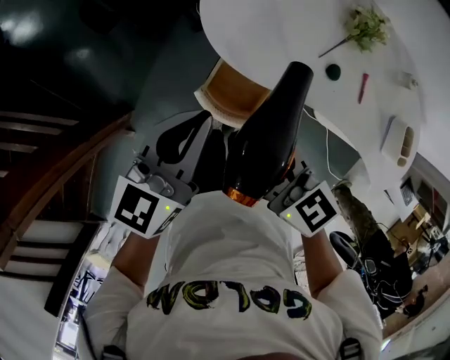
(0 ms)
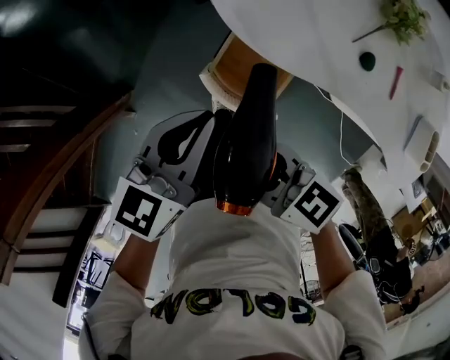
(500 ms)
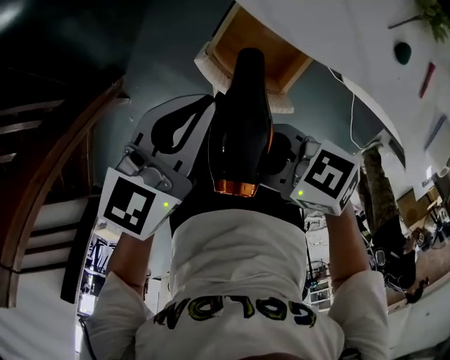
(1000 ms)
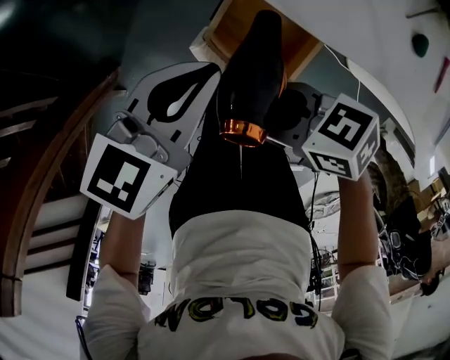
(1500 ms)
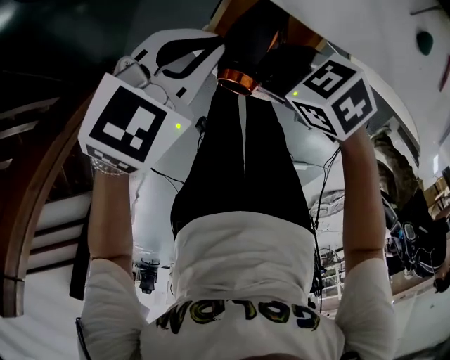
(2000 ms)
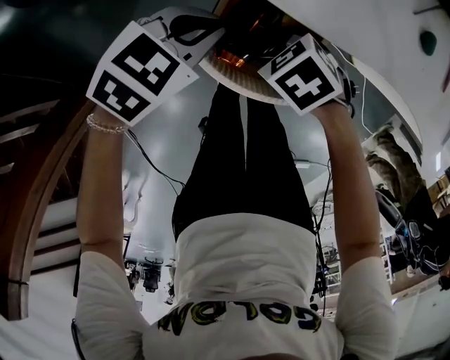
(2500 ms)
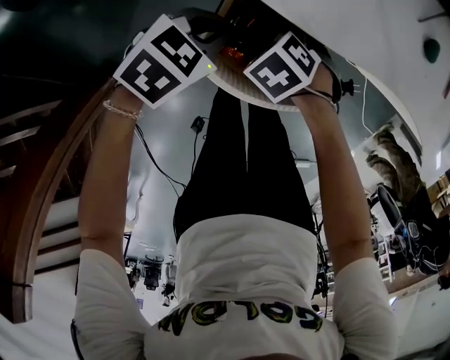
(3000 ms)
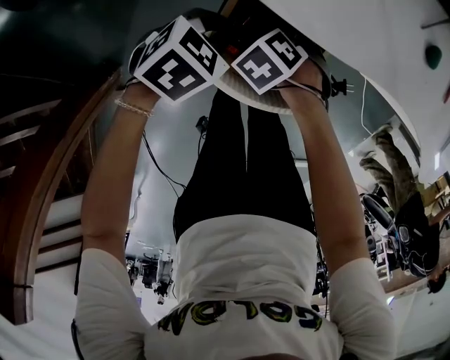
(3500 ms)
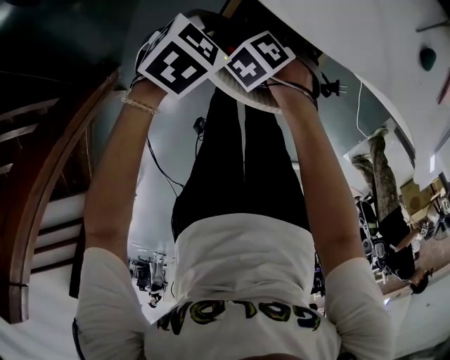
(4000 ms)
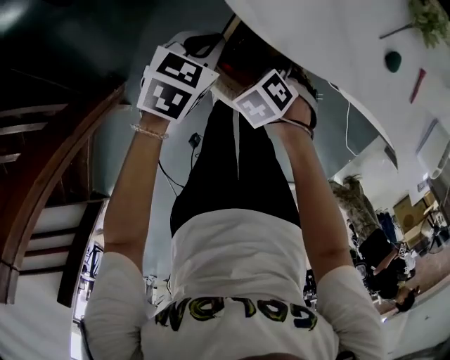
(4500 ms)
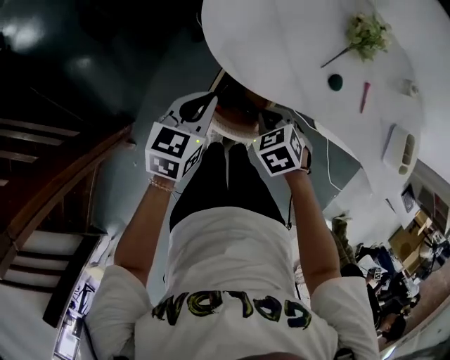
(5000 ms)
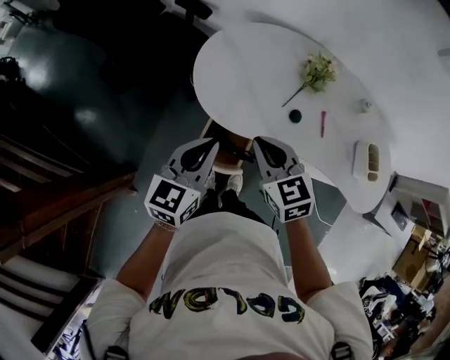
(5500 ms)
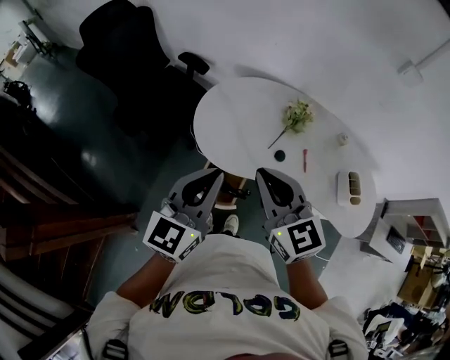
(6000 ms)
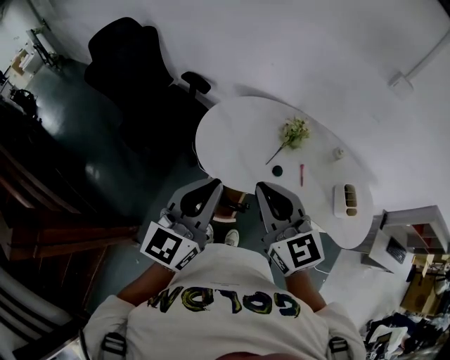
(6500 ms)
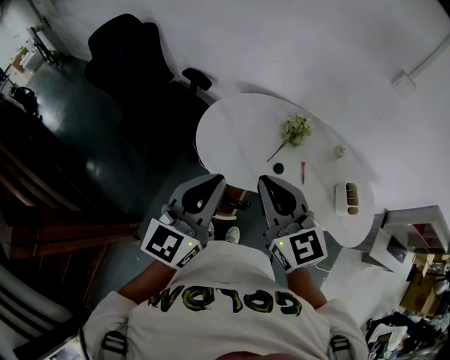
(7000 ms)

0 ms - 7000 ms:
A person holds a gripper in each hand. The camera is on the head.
0 ms - 2000 ms: Both grippers move downward, approximately 30 cm. The right gripper turns by about 40 degrees; the left gripper changes its angle by approximately 40 degrees.
2000 ms - 3500 ms: Both grippers travel together downward, some 15 cm. The right gripper angles its fingers downward, by some 40 degrees.
3500 ms - 5000 ms: Both grippers move upward, some 25 cm. The left gripper swivels some 40 degrees. The right gripper turns by about 30 degrees, and closes.
5000 ms - 7000 ms: The two grippers go roughly 40 cm upward. The left gripper angles its fingers upward, by about 40 degrees. The right gripper points its fingers about 60 degrees further upward.

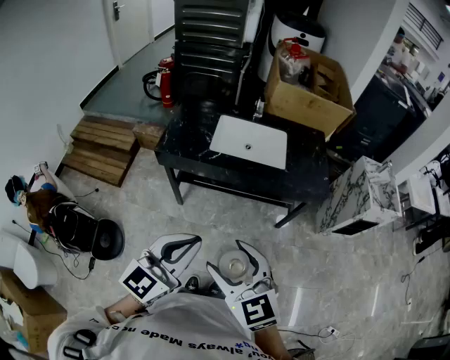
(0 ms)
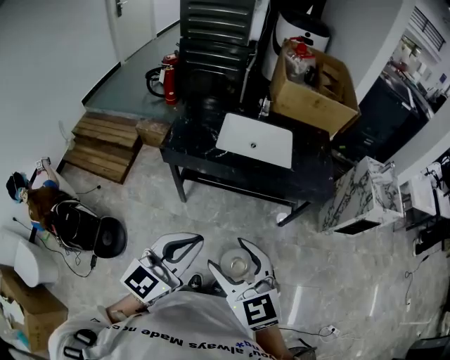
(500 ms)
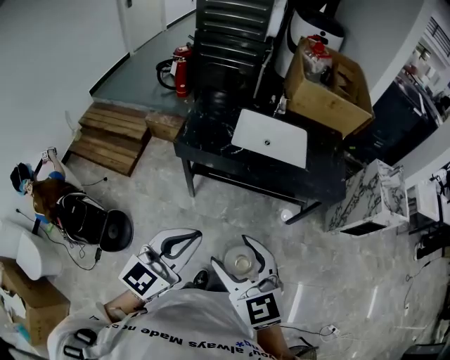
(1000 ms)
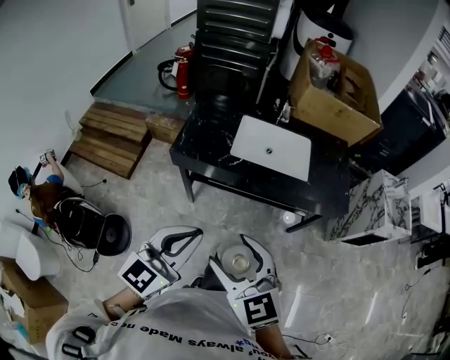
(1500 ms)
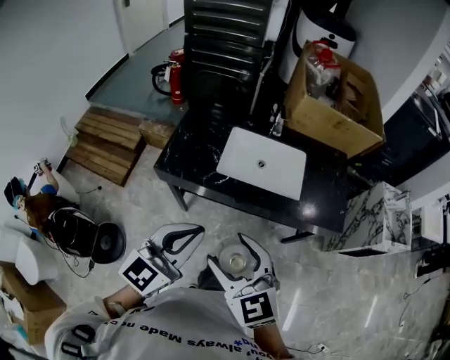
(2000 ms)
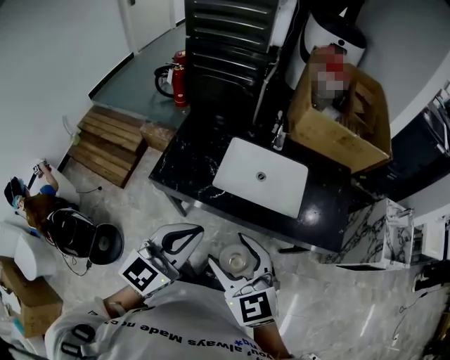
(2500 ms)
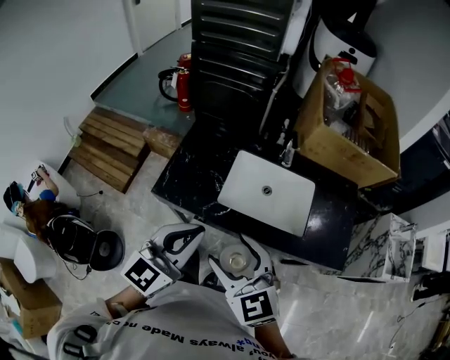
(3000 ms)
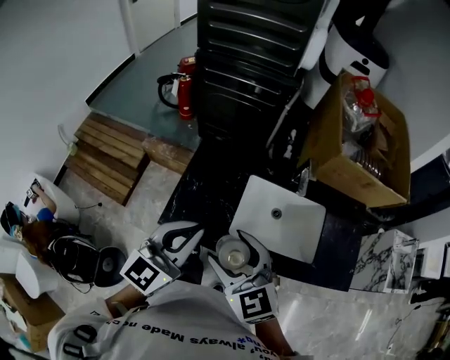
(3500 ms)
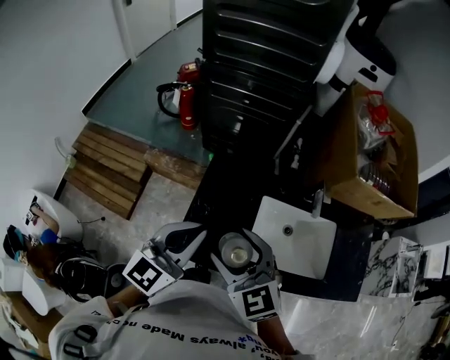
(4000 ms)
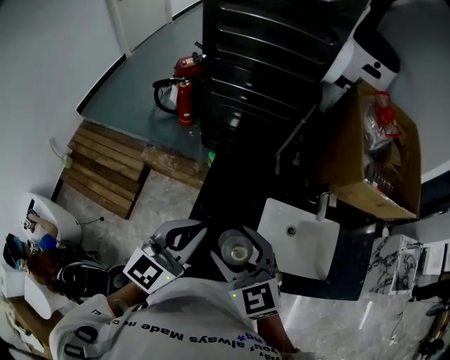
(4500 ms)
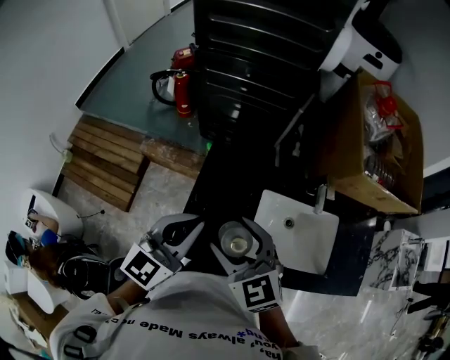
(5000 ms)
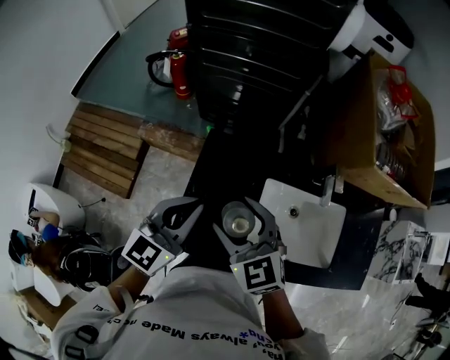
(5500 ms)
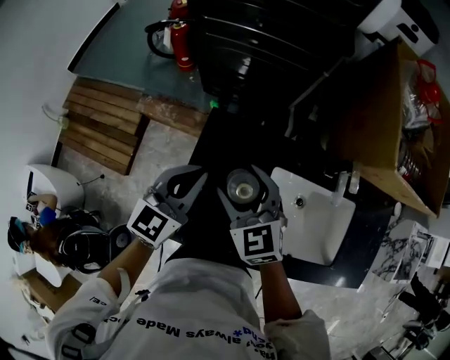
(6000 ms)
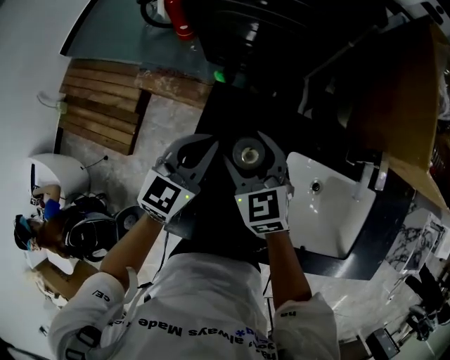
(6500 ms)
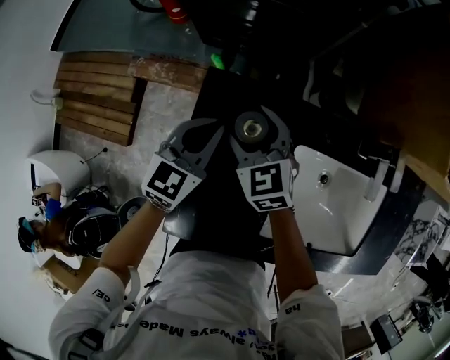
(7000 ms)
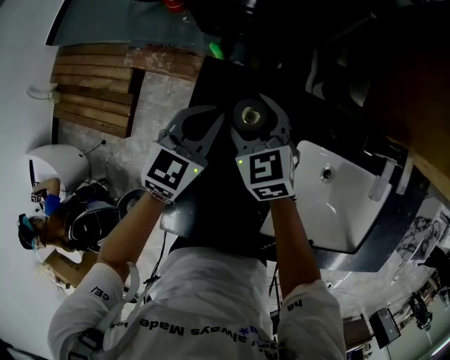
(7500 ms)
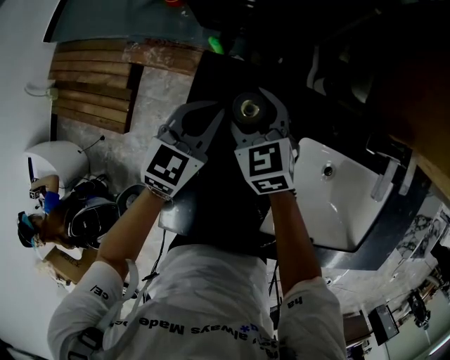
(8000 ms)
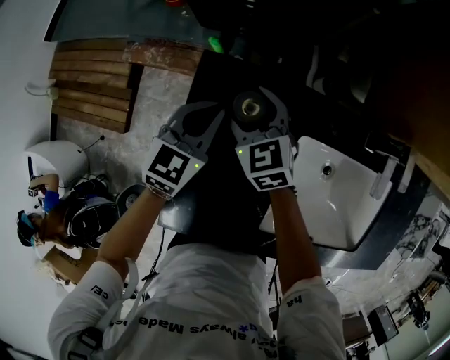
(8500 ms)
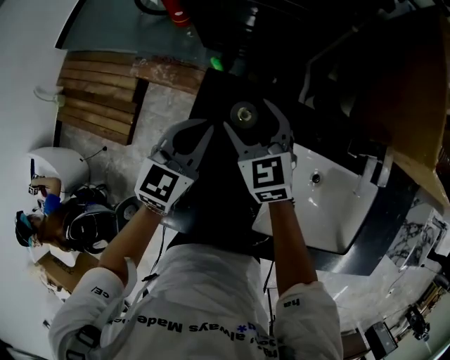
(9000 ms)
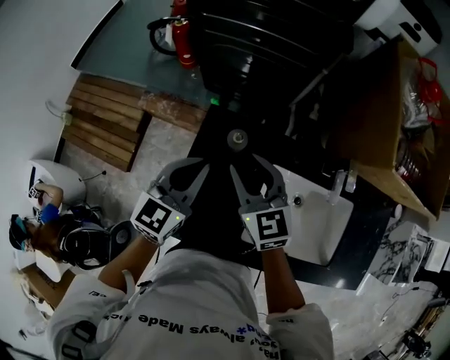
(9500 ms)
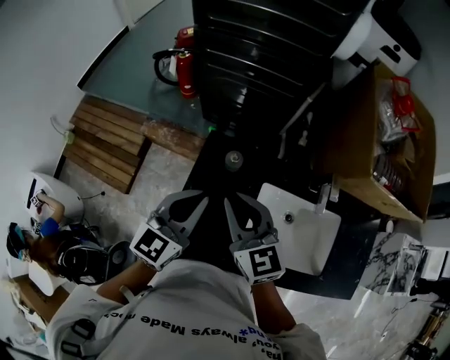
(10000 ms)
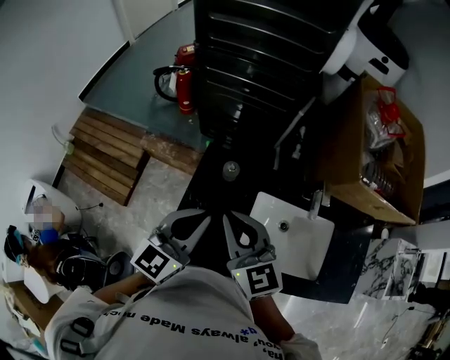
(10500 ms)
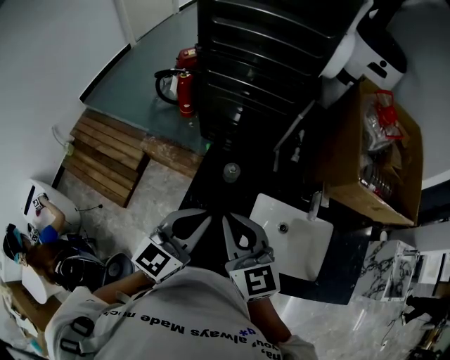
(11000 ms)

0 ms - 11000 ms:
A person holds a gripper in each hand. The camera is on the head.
0 ms - 2000 ms: Both grippers travel together forward, roughly 20 cm.
2000 ms - 3500 ms: Both grippers move forward, roughly 30 cm.
3500 ms - 5500 ms: Both grippers travel together forward, roughly 20 cm.
5500 ms - 7500 ms: Both grippers travel together downward and forward, about 30 cm.
7500 ms - 9000 ms: Both grippers move upward, about 5 cm.
9000 ms - 11000 ms: The grippers both shift upward and backward by approximately 30 cm. The right gripper closes.

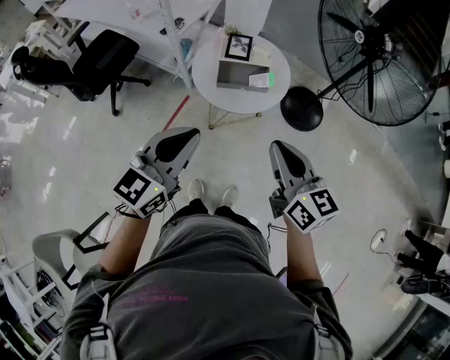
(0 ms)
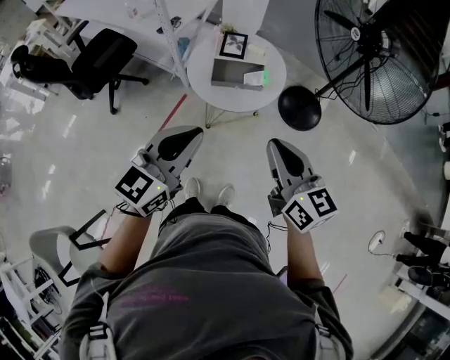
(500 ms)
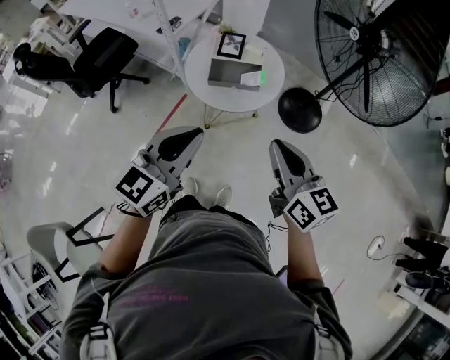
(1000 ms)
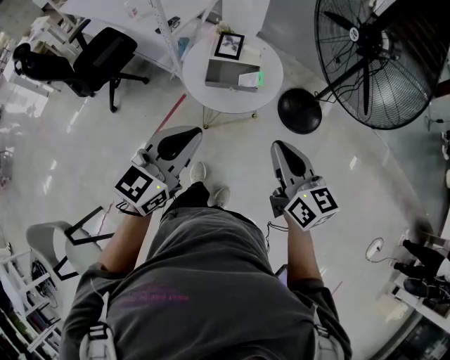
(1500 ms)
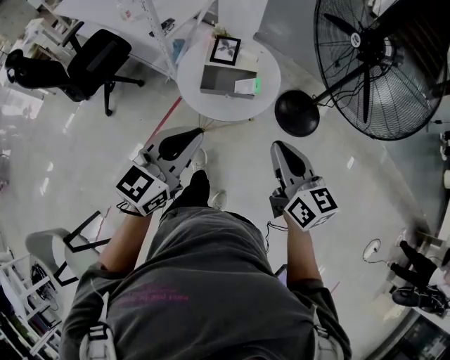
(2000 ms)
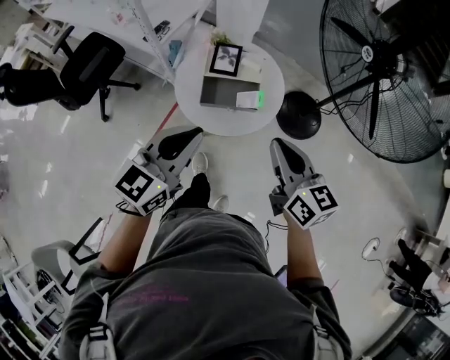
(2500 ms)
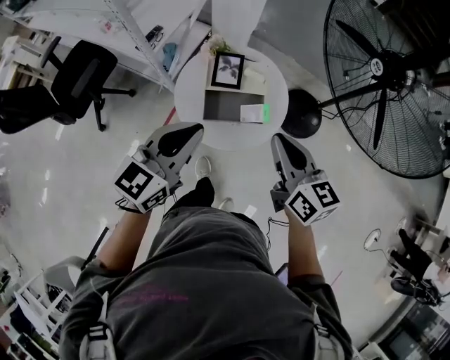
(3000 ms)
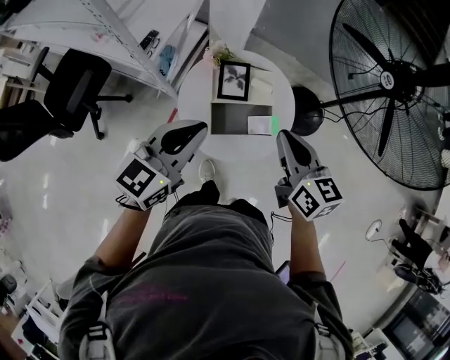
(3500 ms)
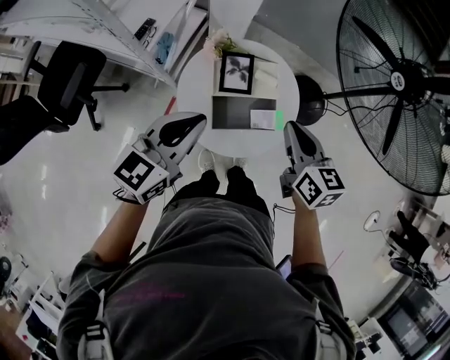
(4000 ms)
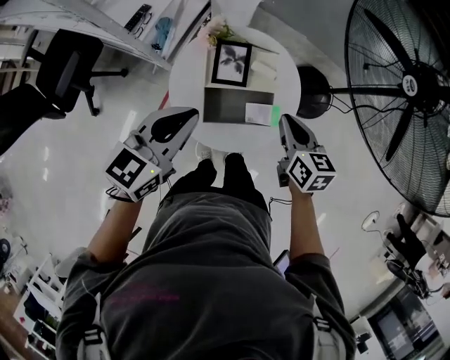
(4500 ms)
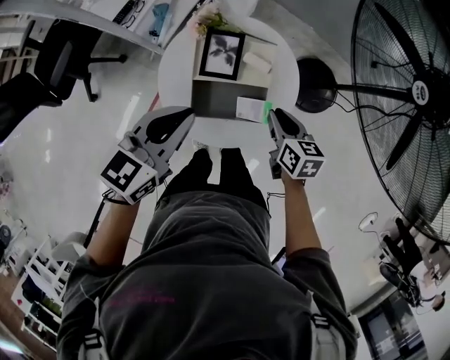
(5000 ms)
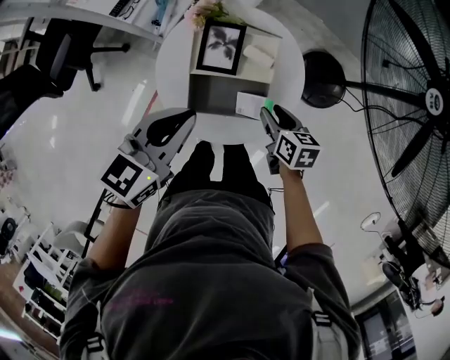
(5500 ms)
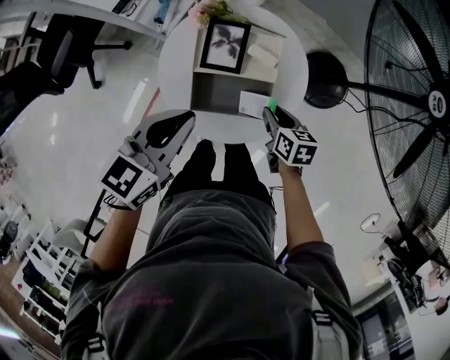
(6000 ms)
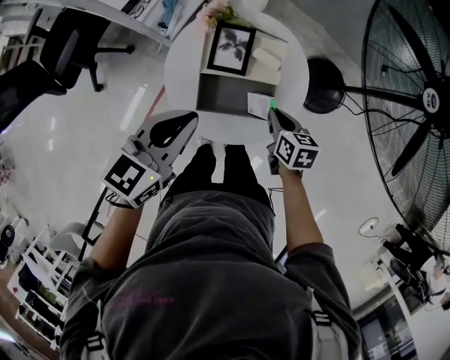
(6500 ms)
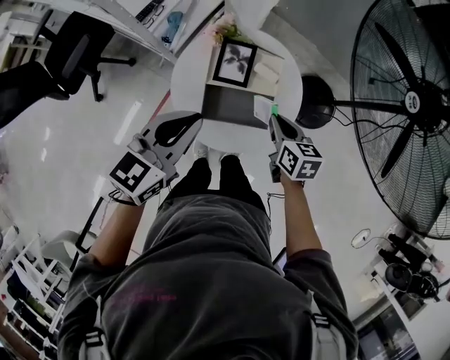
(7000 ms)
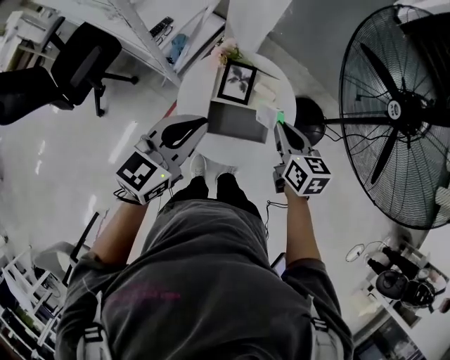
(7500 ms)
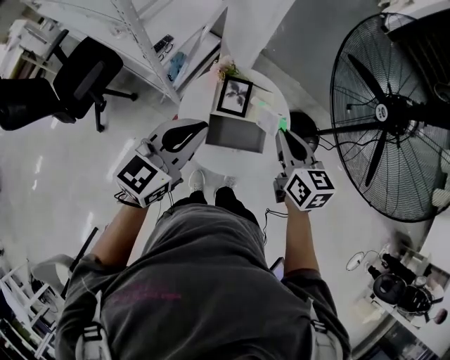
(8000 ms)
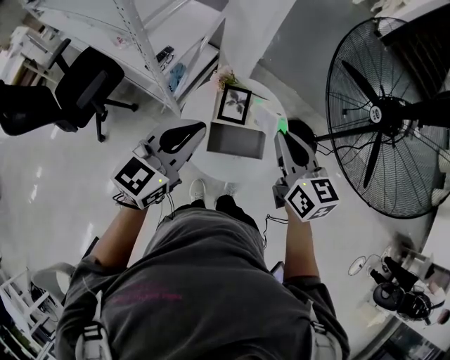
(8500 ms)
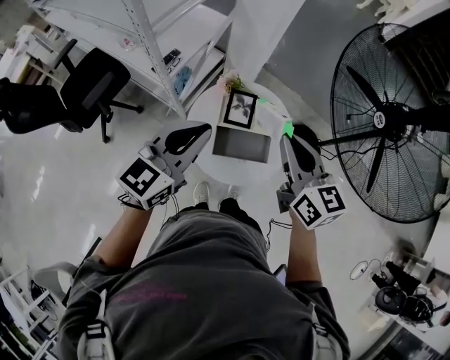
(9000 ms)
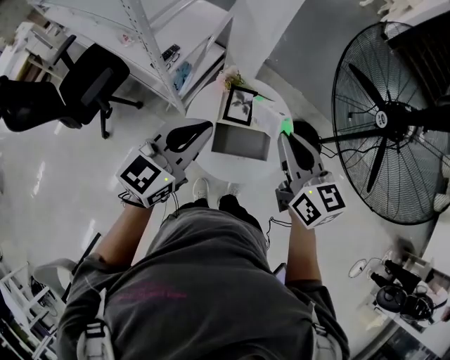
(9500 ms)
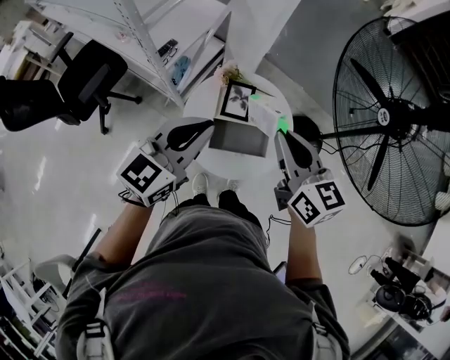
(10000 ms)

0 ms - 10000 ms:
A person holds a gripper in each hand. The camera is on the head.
0 ms - 2000 ms: The two grippers go some 10 cm to the right and forward.
2000 ms - 4000 ms: Both grippers travel together forward and to the left, approximately 30 cm. The right gripper rotates some 20 degrees.
4000 ms - 6000 ms: The right gripper shifts some 25 cm downward, rotates approximately 30 degrees, and opens its fingers; the left gripper shifts approximately 10 cm downward and to the right.
6000 ms - 8000 ms: The right gripper goes some 30 cm upward, rotates roughly 30 degrees, and closes up. The left gripper travels upward by about 15 cm, and turns by some 20 degrees.
8000 ms - 10000 ms: The right gripper is displaced upward by about 10 cm.
